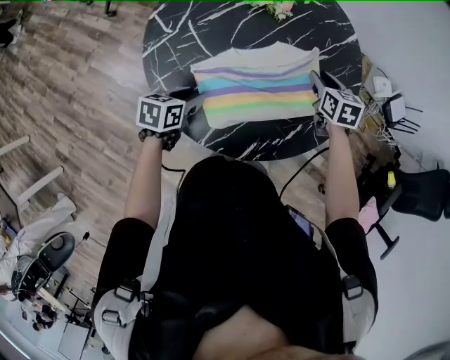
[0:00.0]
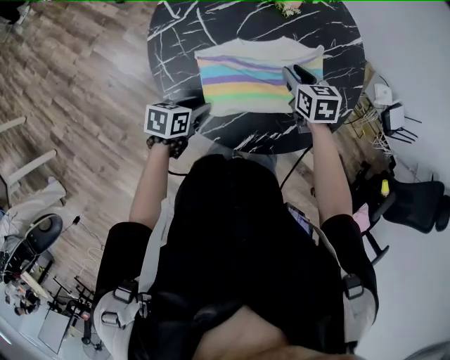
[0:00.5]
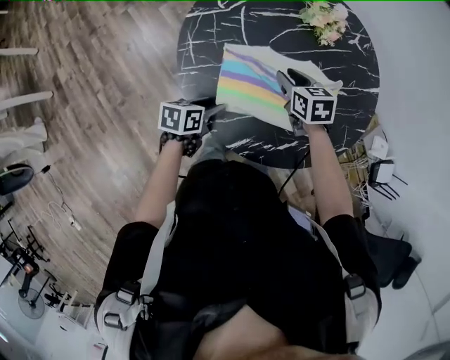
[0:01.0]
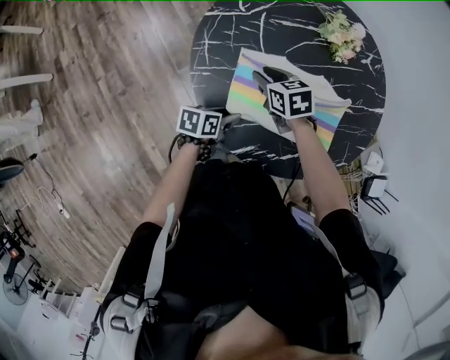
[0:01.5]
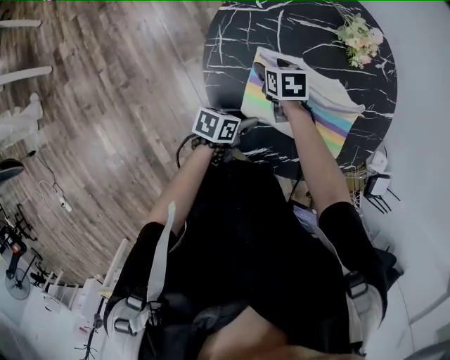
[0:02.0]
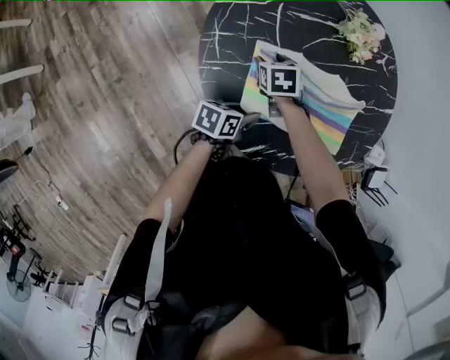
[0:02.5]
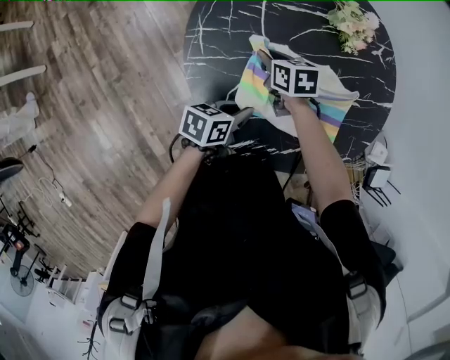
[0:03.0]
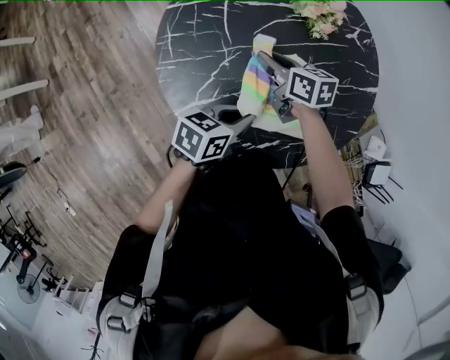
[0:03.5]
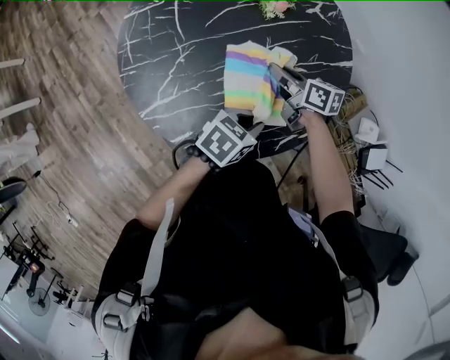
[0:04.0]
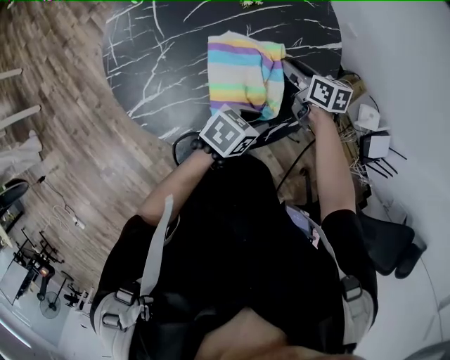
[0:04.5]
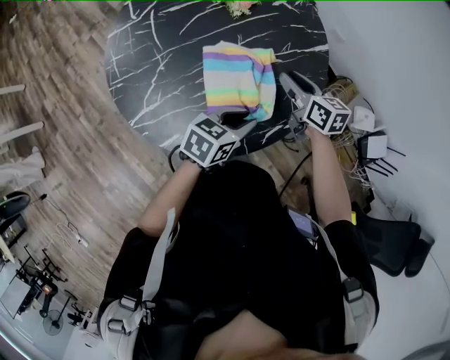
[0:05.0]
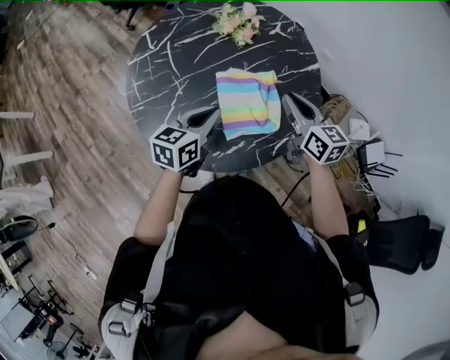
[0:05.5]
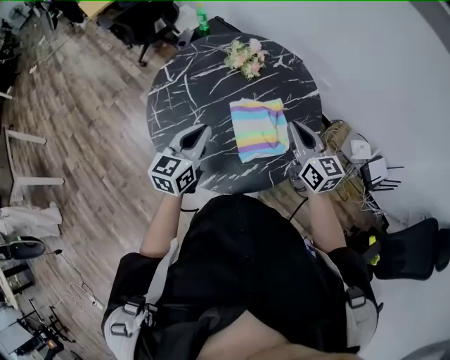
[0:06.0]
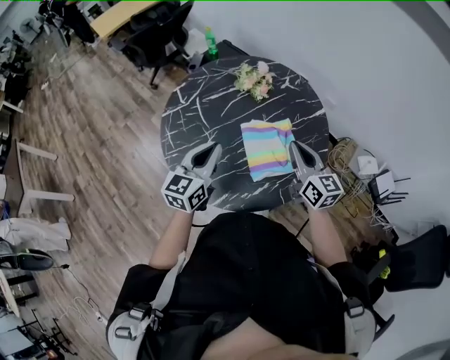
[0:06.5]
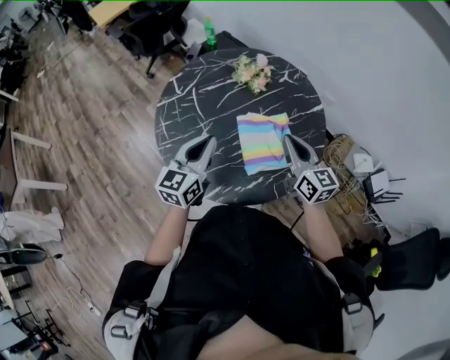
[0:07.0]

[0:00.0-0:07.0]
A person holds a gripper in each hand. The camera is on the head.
0:00.0 to 0:02.0: The right gripper ends up roughly 35 cm from where it was, swivels about 40 degrees, and opens, while the left gripper moves approximately 15 cm, and changes its angle by some 30 degrees.
0:02.0 to 0:03.5: The left gripper is displaced upward and to the right by some 15 cm, and closes its fingers. The right gripper travels to the right and upward by some 15 cm, turns by approximately 30 degrees, and closes.
0:03.5 to 0:05.0: The right gripper changes place by approximately 30 cm, while the left gripper changes place by about 20 cm.
0:05.0 to 0:07.0: The right gripper travels upward, backward and to the left by approximately 20 cm, rotates roughly 30 degrees, and closes. Meanwhile the left gripper shifts approximately 30 cm to the left and upward, changes its angle by roughly 40 degrees, and closes its fingers.

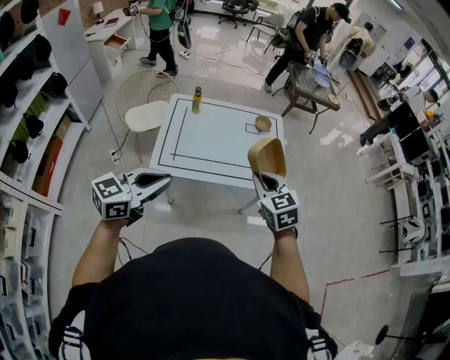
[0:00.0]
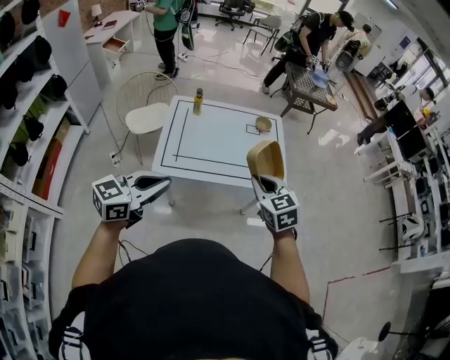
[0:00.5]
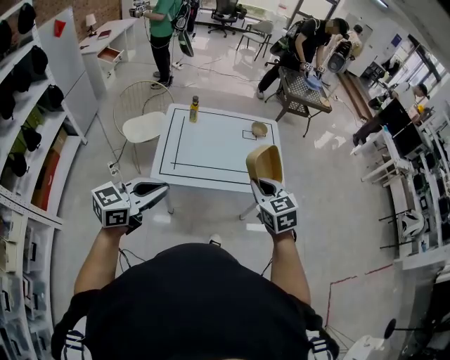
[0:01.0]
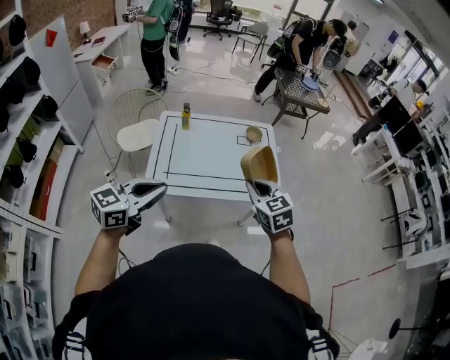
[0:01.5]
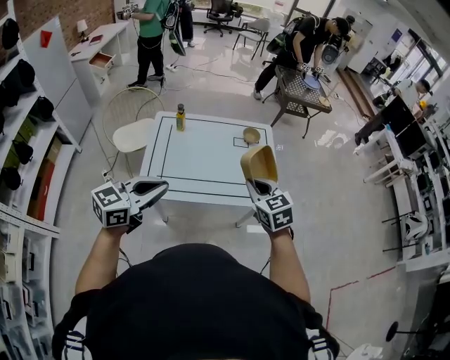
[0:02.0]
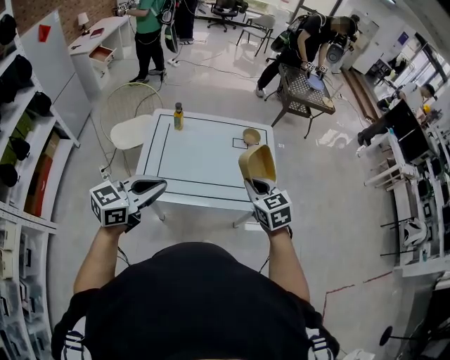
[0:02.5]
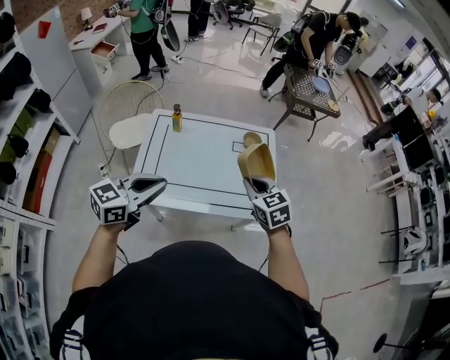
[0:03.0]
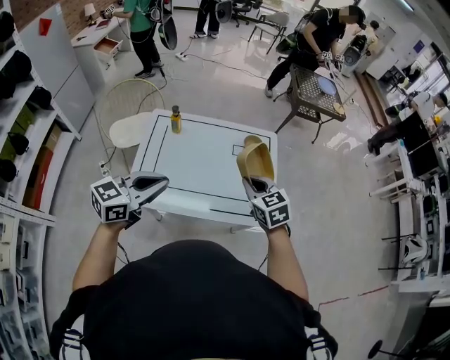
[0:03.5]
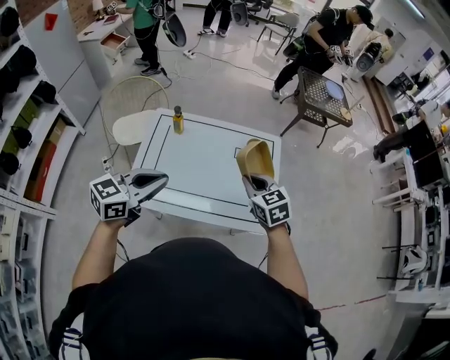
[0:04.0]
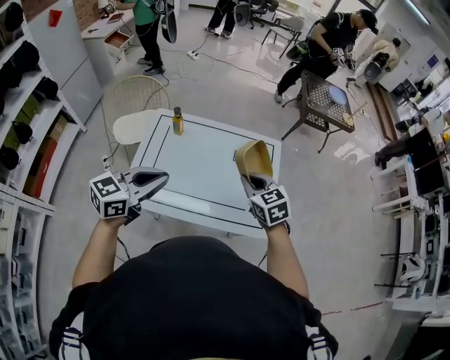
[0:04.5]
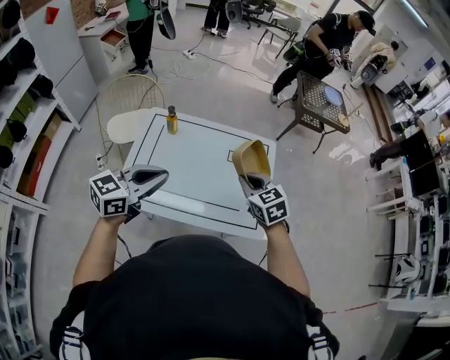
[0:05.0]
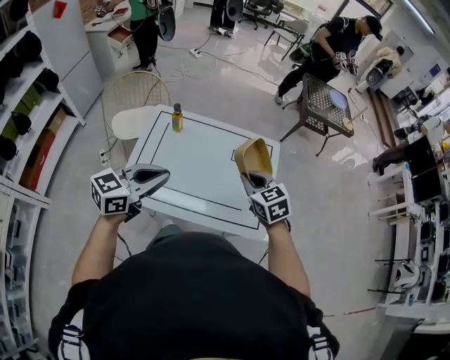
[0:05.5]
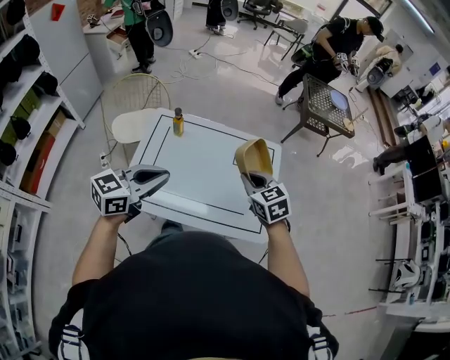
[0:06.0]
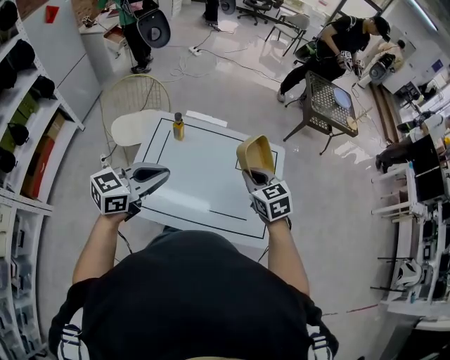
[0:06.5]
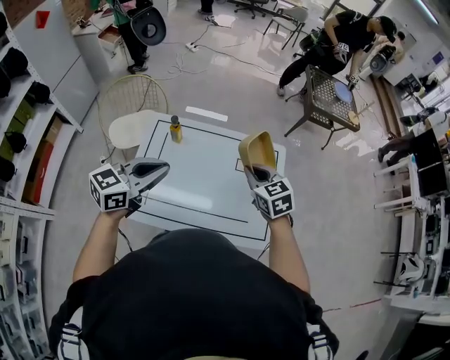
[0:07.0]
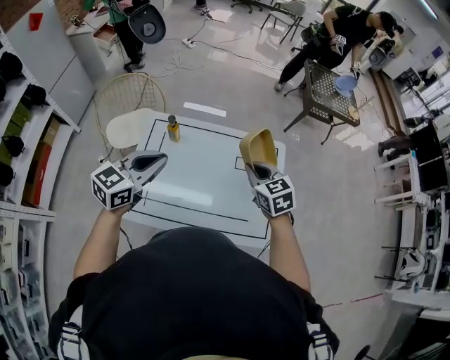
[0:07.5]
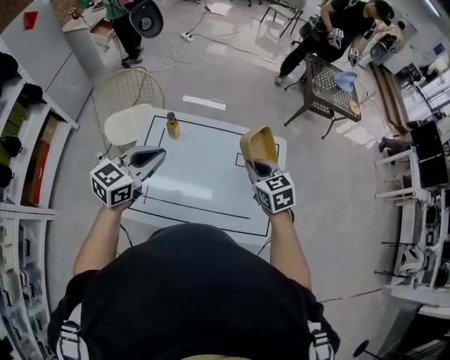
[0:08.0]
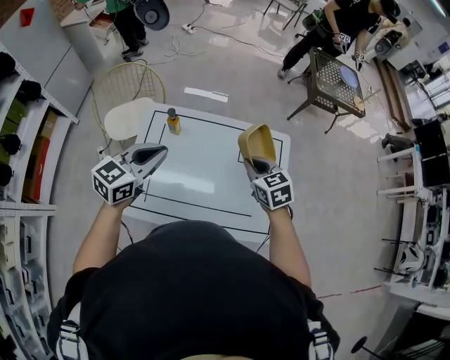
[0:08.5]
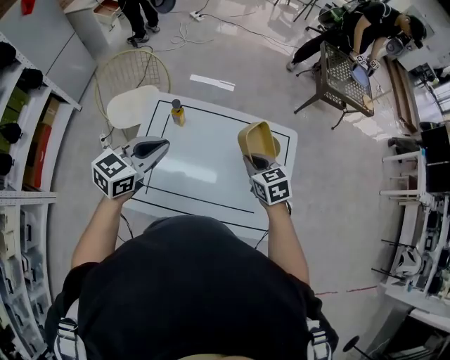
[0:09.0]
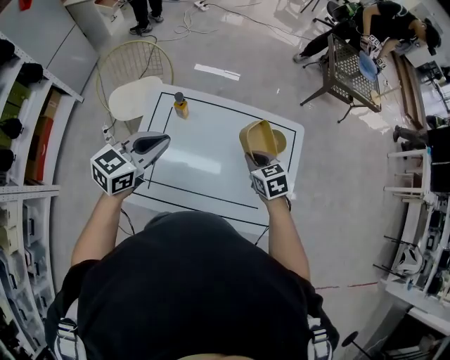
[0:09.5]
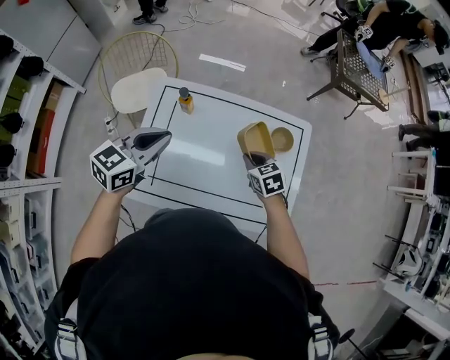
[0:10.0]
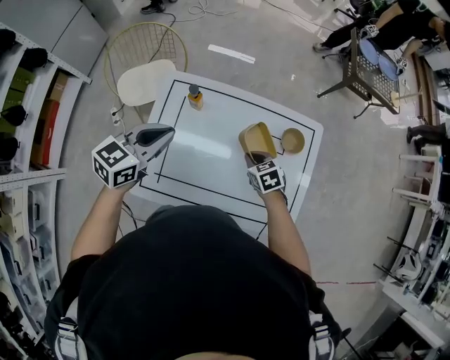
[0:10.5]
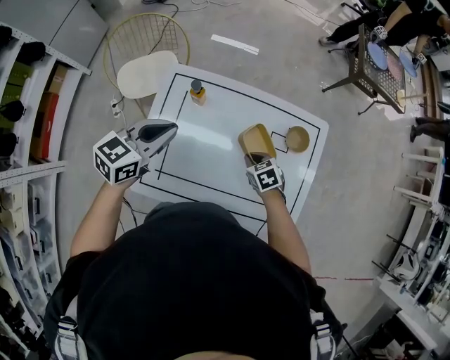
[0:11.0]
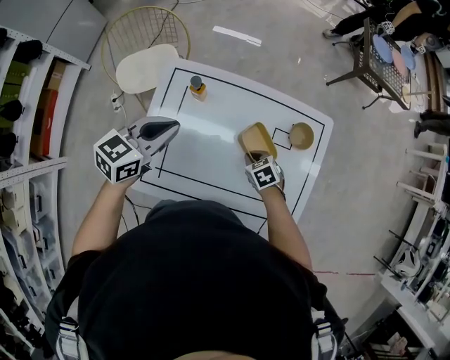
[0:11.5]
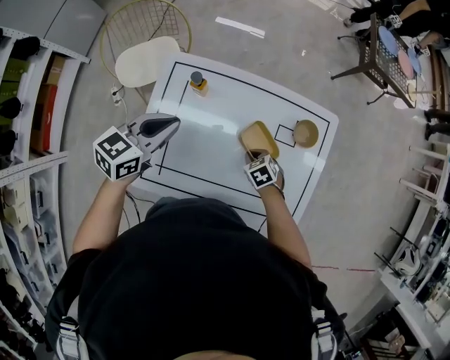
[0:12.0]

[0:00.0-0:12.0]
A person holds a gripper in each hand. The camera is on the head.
0:00.0 to 0:02.0: The grippers both shift forward by about 10 cm.
0:02.0 to 0:04.0: Both grippers move forward, about 15 cm.
0:04.0 to 0:06.0: The grippers stay close to where they were, moving slightly.
0:06.0 to 0:08.0: The two grippers go roughly 15 cm forward.
0:08.0 to 0:10.0: The right gripper goes roughly 15 cm downward. Meanwhile the left gripper goes roughly 5 cm downward.
0:10.0 to 0:12.0: The right gripper travels downward by approximately 15 cm, and turns by approximately 20 degrees. Meanwhile the left gripper is displaced downward and forward by some 10 cm.

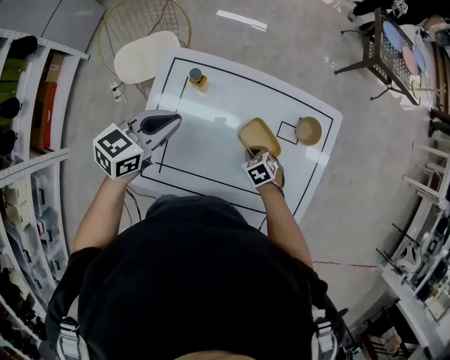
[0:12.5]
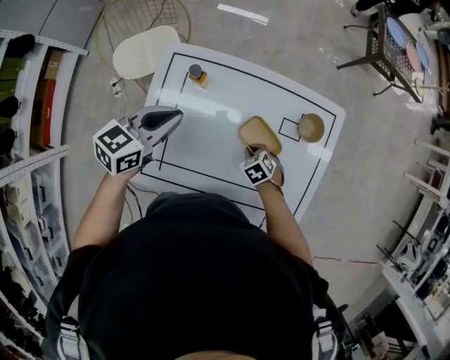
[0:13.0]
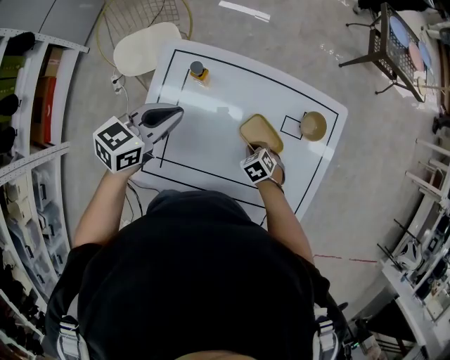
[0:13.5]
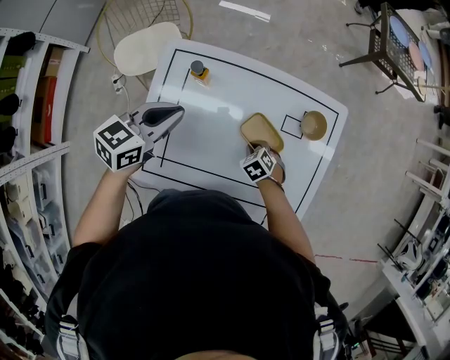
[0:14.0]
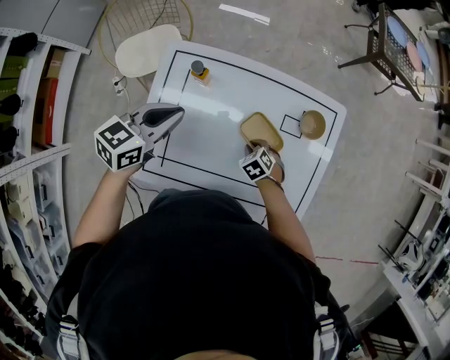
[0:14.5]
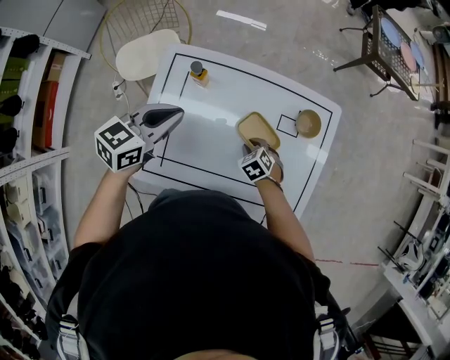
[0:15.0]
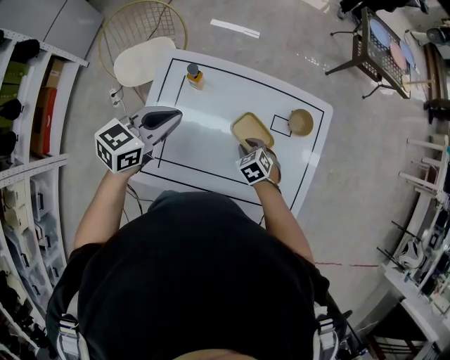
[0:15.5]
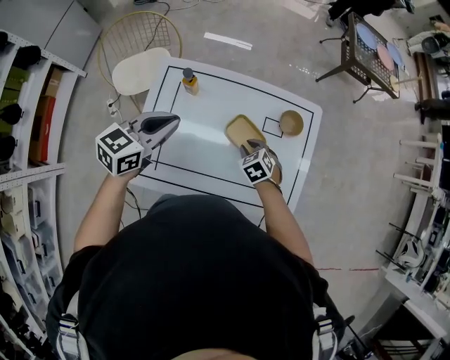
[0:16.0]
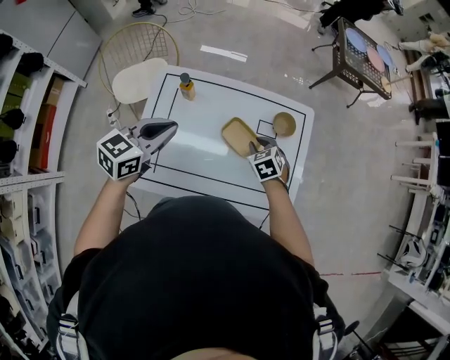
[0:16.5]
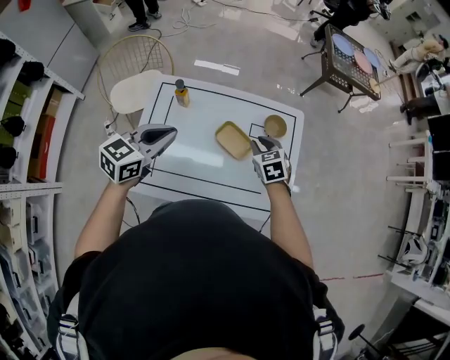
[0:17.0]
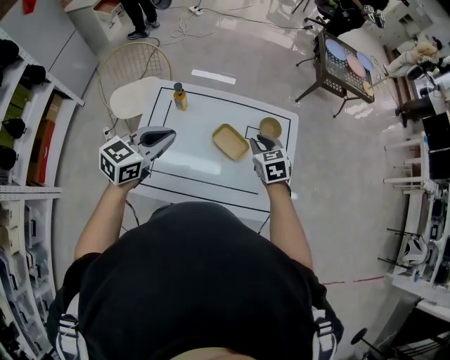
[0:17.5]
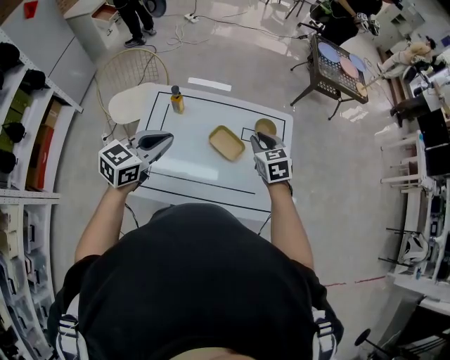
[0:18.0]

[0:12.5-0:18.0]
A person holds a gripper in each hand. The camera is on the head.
0:12.5 to 0:14.5: The grippers stay close to where they were, moving slightly.
0:14.5 to 0:16.0: The right gripper goes about 10 cm upward, while the left gripper is displaced upward by about 5 cm.
0:16.0 to 0:18.0: The right gripper goes approximately 20 cm upward, and changes its angle by approximately 30 degrees. The left gripper shifts approximately 10 cm backward, upward and to the right.

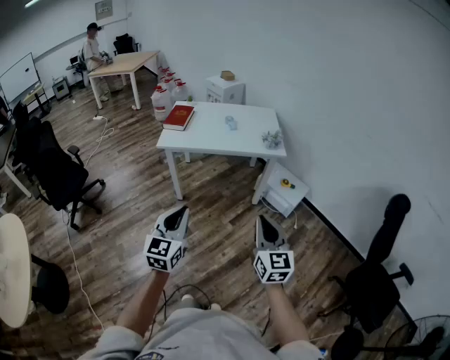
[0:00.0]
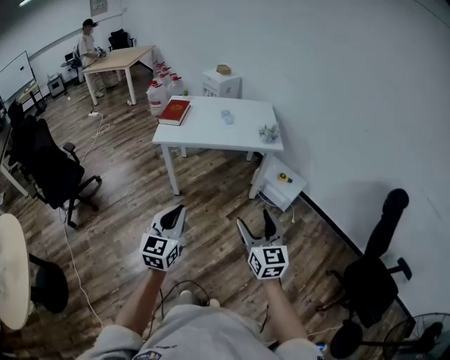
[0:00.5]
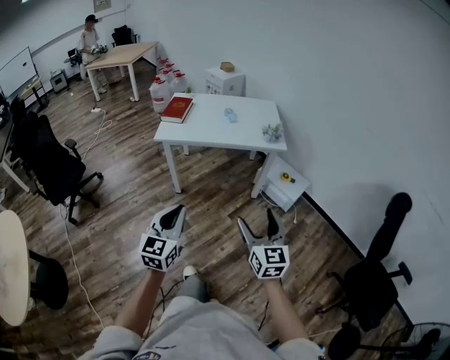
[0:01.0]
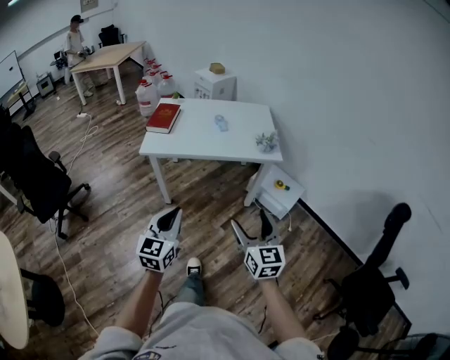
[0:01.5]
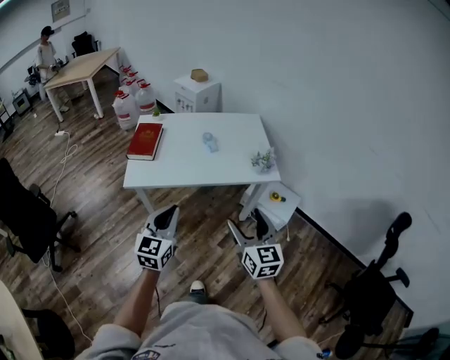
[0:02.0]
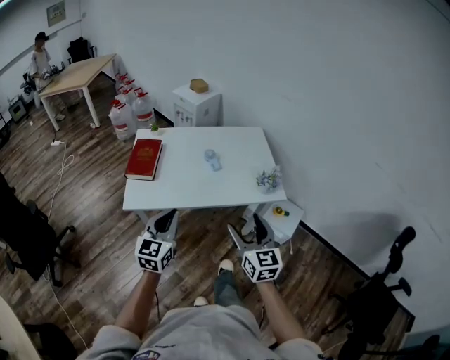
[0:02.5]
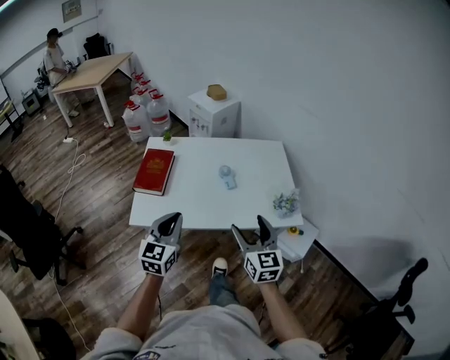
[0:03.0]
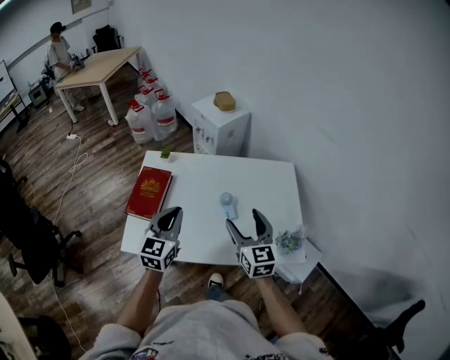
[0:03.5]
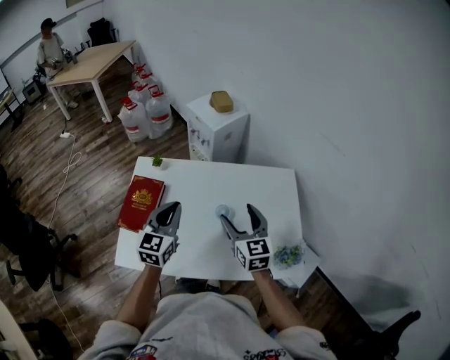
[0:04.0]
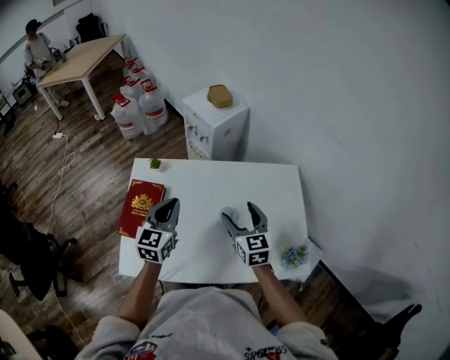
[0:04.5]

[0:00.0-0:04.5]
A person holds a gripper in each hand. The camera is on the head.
0:00.0 to 0:02.0: Both grippers are carried forward, some 40 cm. The right gripper opens up.
0:02.0 to 0:04.5: The pair of grippers is taken forward, approximately 70 cm.
